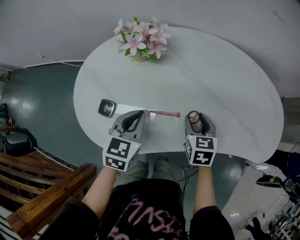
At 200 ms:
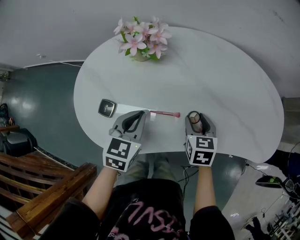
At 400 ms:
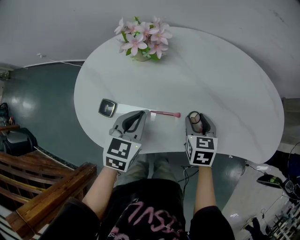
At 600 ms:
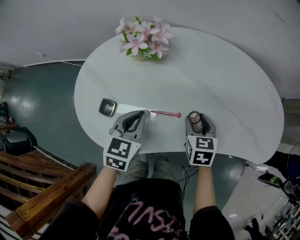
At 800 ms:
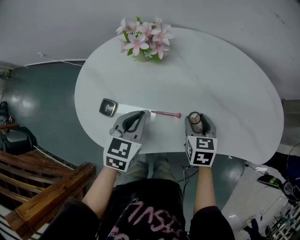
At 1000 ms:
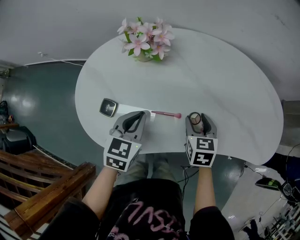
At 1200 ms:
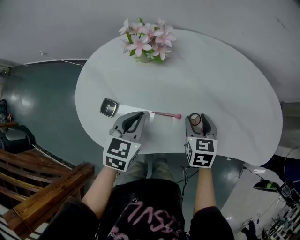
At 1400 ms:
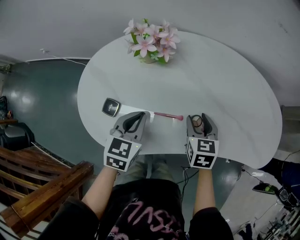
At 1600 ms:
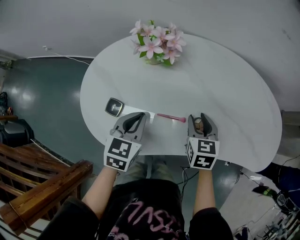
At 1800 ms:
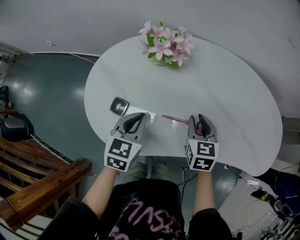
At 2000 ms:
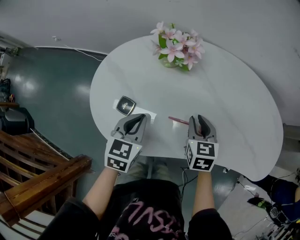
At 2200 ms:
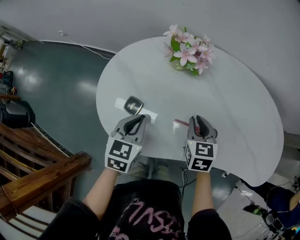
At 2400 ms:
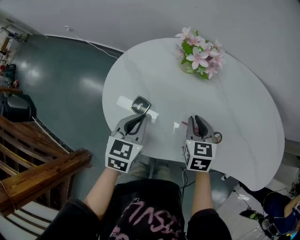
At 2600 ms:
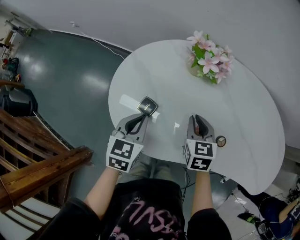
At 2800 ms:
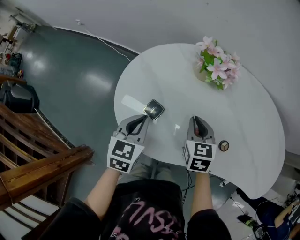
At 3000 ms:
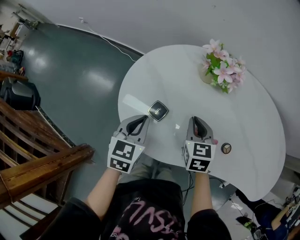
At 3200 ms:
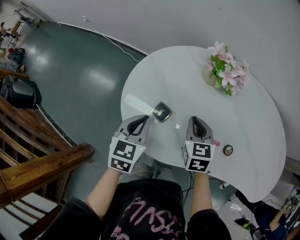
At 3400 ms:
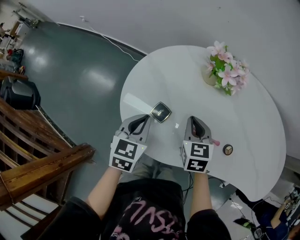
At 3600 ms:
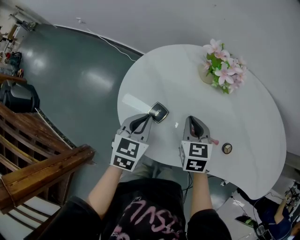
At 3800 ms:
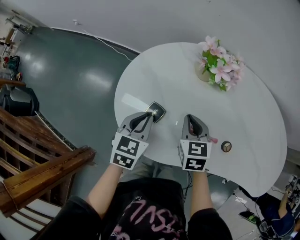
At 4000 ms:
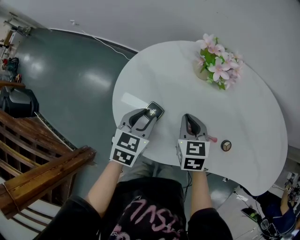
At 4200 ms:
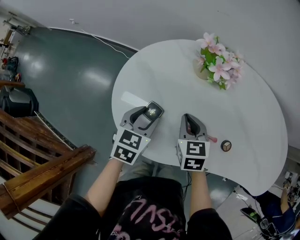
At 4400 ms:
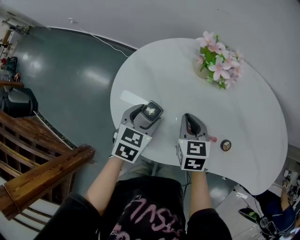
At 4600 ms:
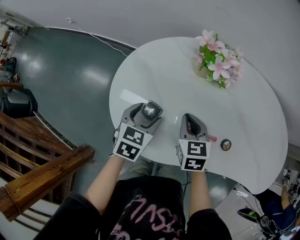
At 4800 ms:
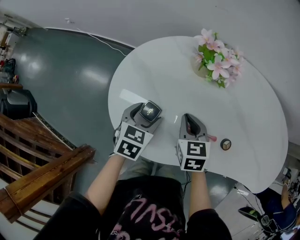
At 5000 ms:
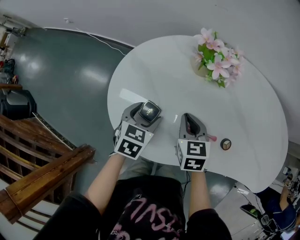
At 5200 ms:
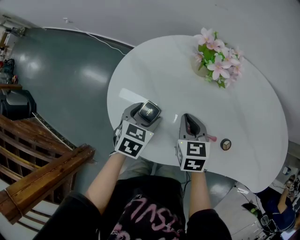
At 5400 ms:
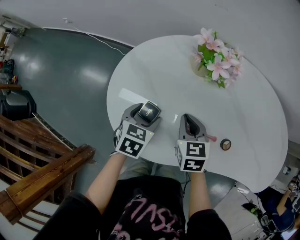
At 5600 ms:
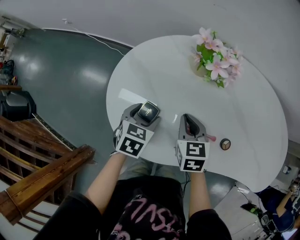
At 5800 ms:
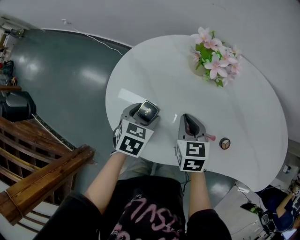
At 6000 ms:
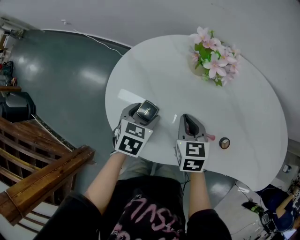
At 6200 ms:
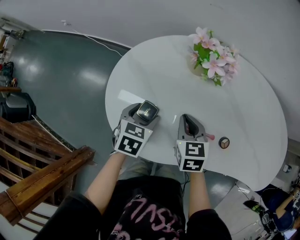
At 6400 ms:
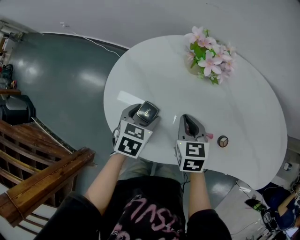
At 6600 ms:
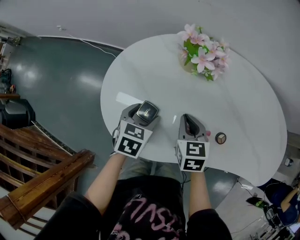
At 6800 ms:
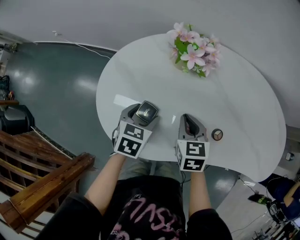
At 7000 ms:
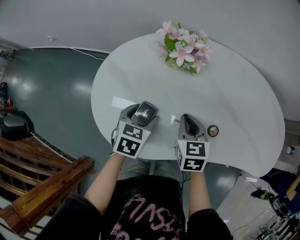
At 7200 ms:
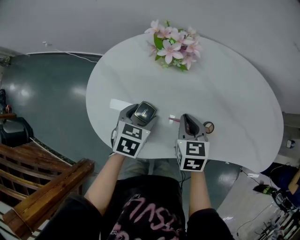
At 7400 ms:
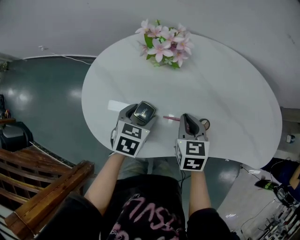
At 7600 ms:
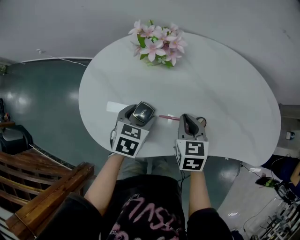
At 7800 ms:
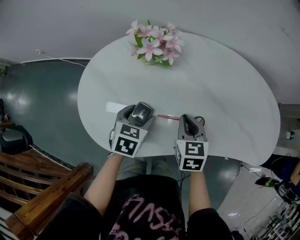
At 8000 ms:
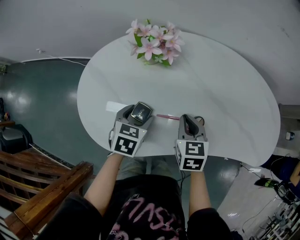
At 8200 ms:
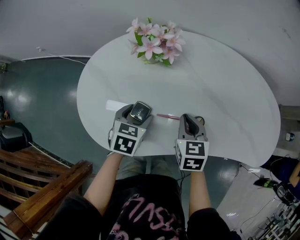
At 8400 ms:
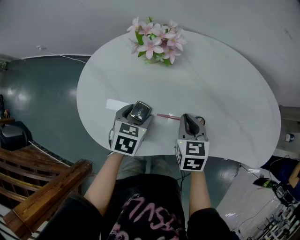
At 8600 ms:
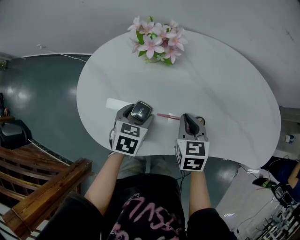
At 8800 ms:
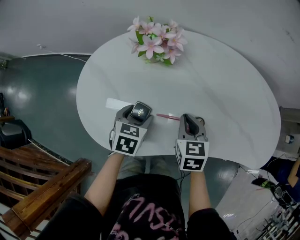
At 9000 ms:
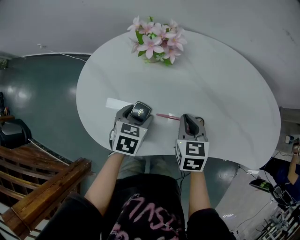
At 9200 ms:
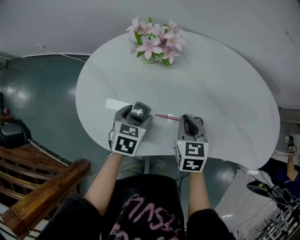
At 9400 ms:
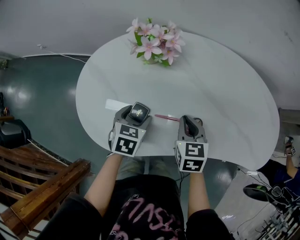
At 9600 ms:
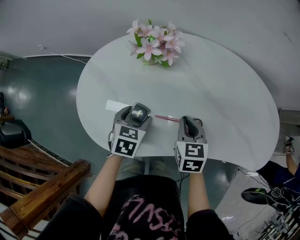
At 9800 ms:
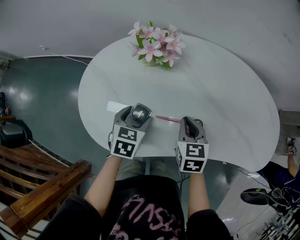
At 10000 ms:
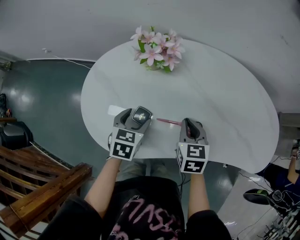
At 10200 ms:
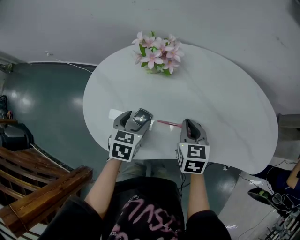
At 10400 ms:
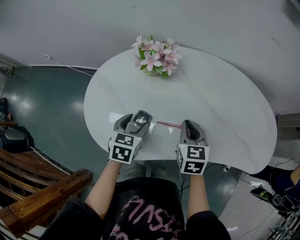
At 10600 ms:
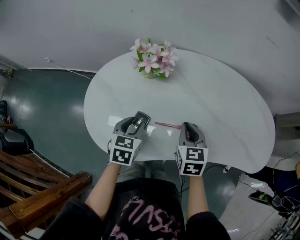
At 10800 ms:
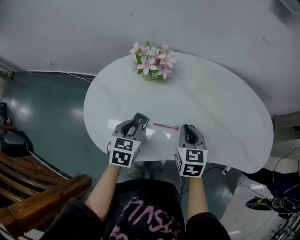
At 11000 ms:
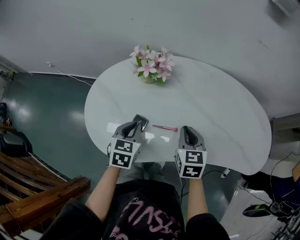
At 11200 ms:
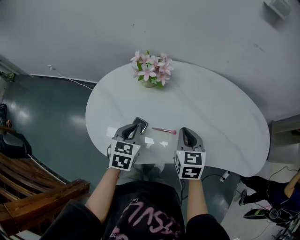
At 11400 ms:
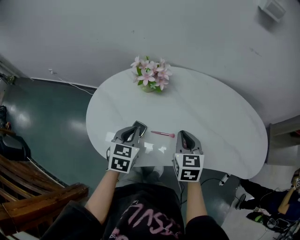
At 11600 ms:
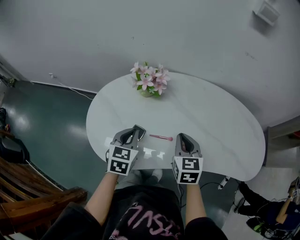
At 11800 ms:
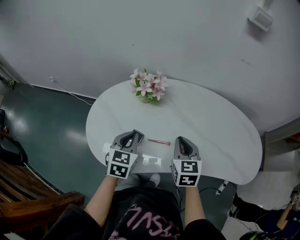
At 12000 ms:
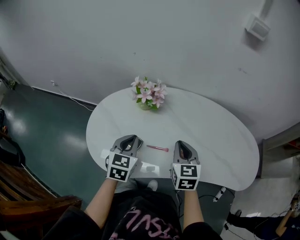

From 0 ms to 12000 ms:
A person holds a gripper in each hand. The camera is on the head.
From 0 ms to 1600 ms: The grippers make only small movements.
From 1600 ms to 3000 ms: The two grippers go roughly 20 cm to the left. The right gripper closes its fingers.
From 3000 ms to 4400 ms: The left gripper shifts by approximately 5 cm, and opens.
From 4400 ms to 6000 ms: The grippers make only small movements.
From 6000 ms to 7600 ms: Both grippers travel together to the right, roughly 15 cm.
From 7600 ms to 10400 ms: The grippers move only a little.
From 10400 ms to 12000 ms: Both grippers travel together upward, roughly 10 cm. The left gripper closes.

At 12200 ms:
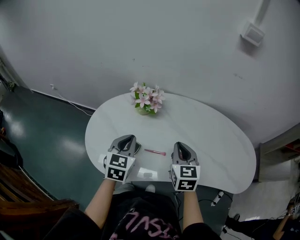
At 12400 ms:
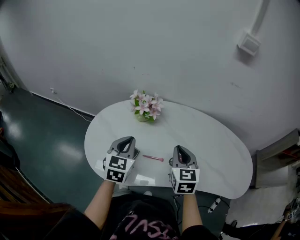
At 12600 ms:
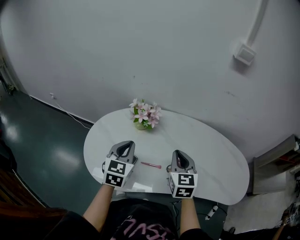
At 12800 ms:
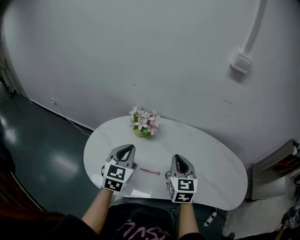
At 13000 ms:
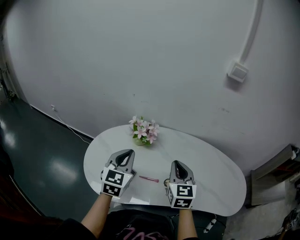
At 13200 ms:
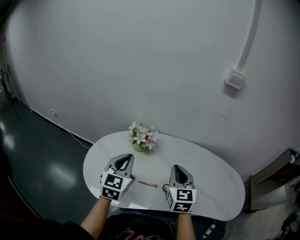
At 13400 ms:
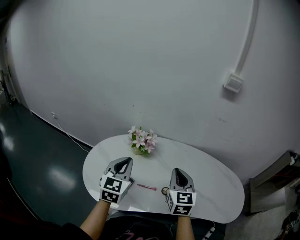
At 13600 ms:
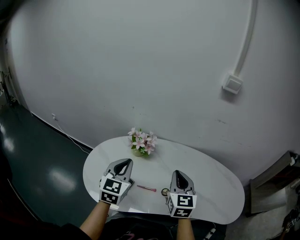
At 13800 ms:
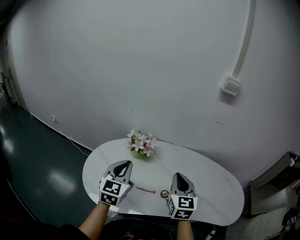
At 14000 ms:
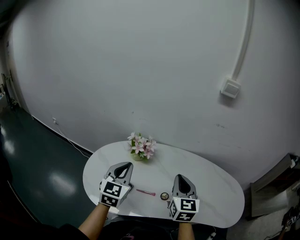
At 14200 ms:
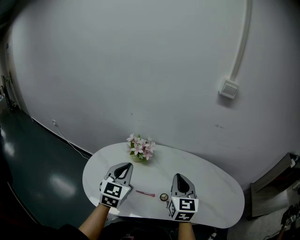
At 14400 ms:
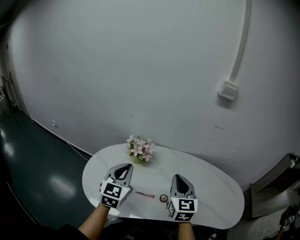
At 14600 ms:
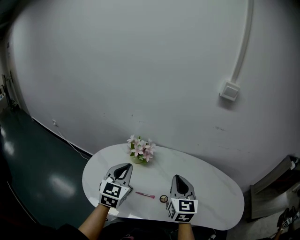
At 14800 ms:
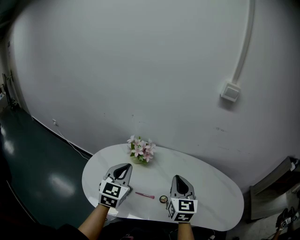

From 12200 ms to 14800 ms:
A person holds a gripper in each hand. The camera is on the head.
From 12200 ms to 13400 ms: Both grippers travel together upward, approximately 10 cm.
From 13400 ms to 14800 ms: The grippers make only small movements.

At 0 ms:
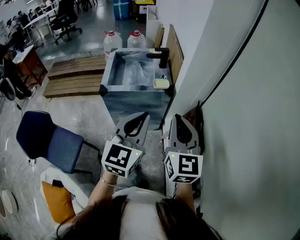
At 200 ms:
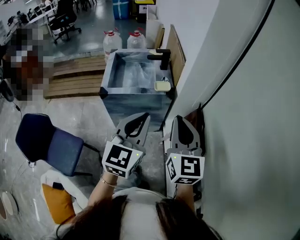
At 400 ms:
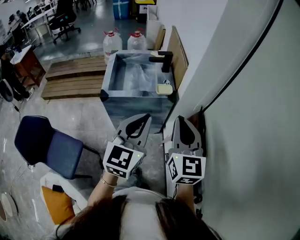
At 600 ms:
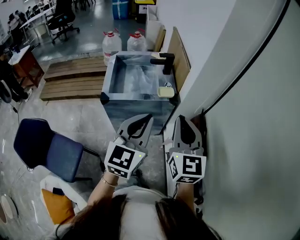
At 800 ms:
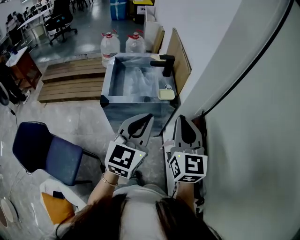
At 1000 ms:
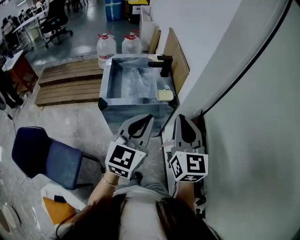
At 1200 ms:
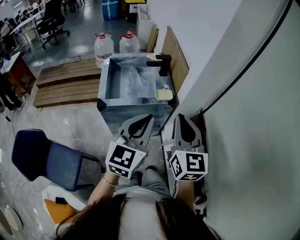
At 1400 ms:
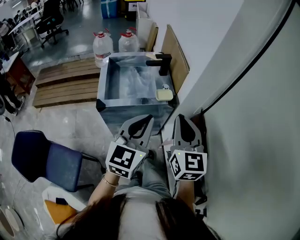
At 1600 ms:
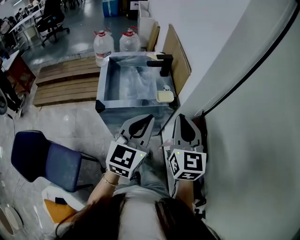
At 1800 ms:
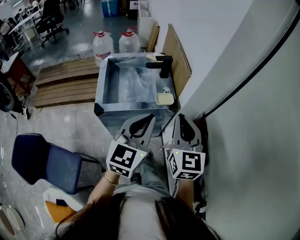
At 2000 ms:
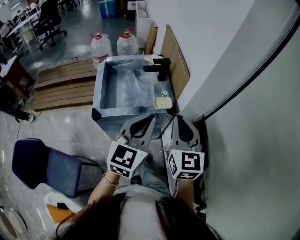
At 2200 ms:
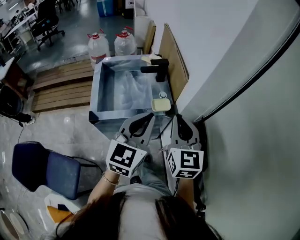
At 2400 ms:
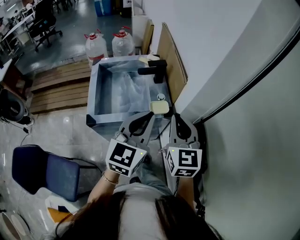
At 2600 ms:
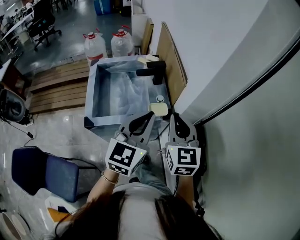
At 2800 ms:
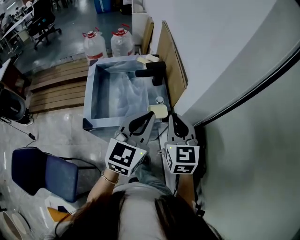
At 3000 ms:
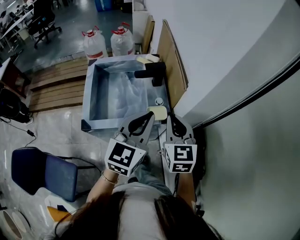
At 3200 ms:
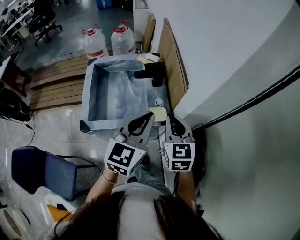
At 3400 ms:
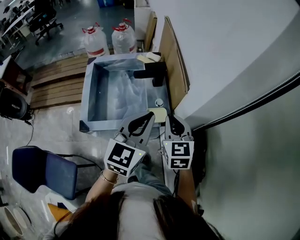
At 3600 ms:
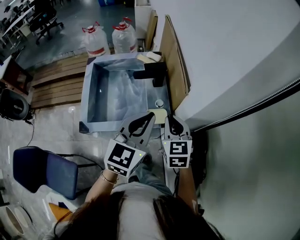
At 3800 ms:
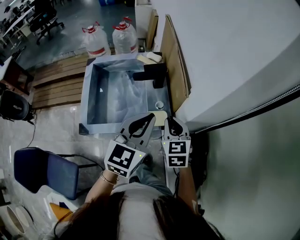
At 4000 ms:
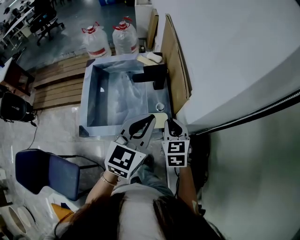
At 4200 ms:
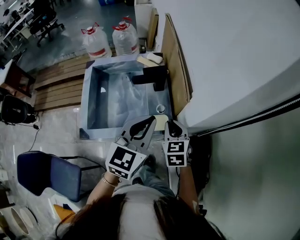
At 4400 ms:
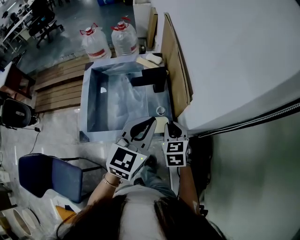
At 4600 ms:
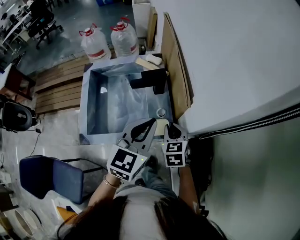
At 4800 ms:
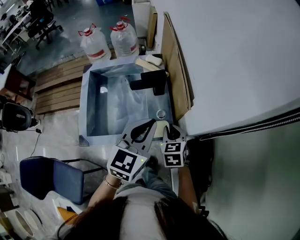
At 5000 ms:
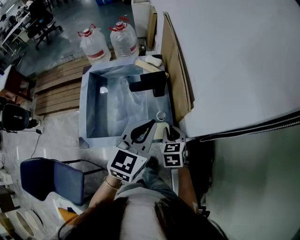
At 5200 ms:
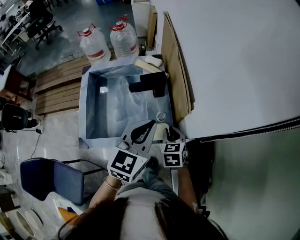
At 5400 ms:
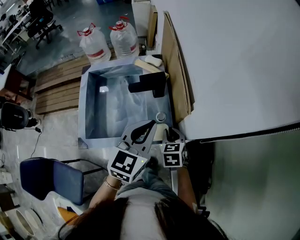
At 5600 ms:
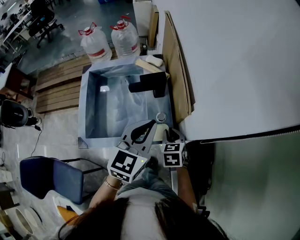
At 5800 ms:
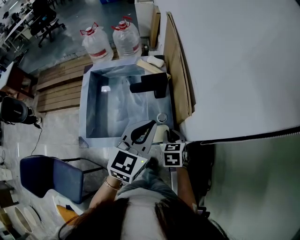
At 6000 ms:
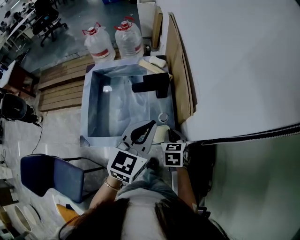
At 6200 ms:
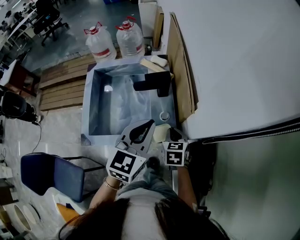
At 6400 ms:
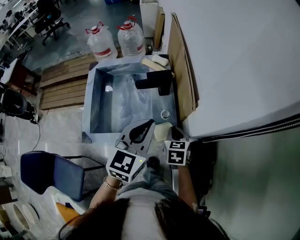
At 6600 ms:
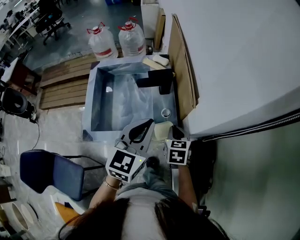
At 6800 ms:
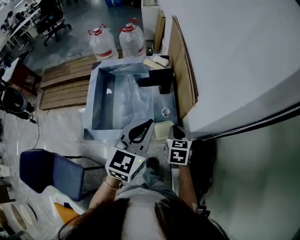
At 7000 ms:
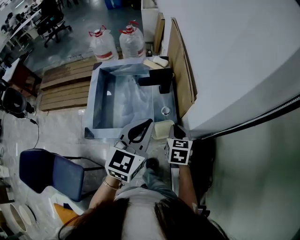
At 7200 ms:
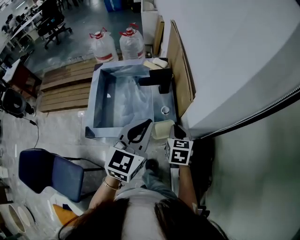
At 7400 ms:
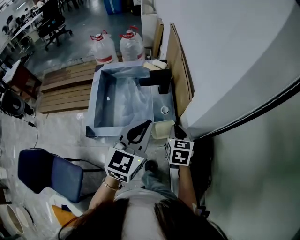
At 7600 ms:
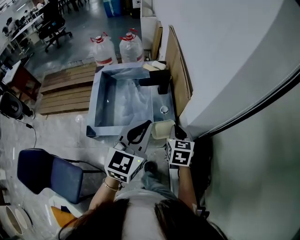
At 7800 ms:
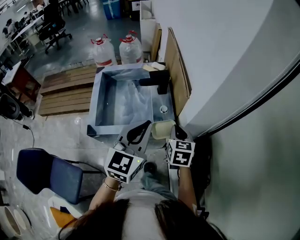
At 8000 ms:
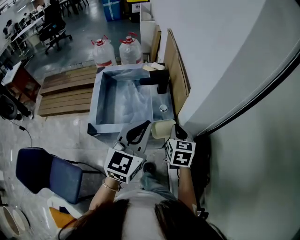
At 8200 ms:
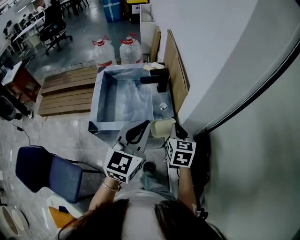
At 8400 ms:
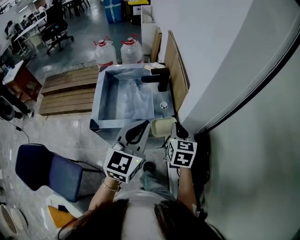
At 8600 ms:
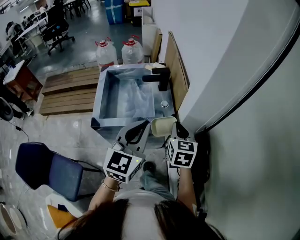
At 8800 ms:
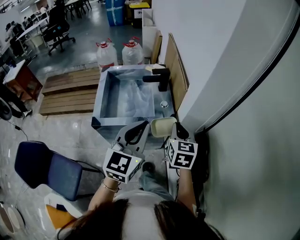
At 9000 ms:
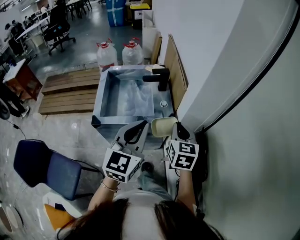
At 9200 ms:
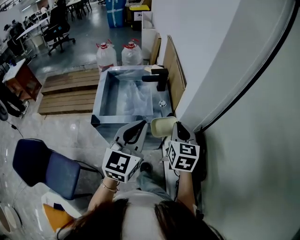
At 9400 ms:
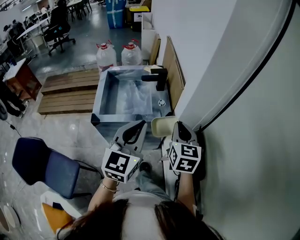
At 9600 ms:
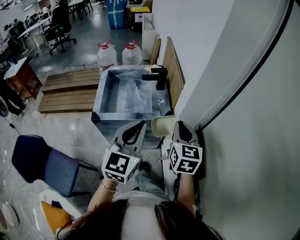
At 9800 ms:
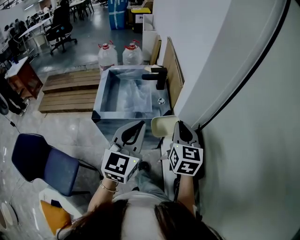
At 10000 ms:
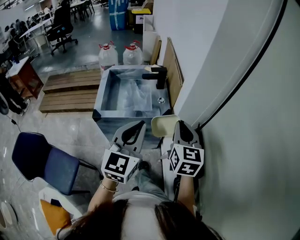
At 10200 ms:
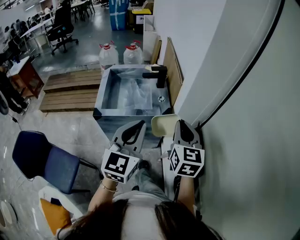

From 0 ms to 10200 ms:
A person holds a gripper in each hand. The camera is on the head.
From 0 ms to 1400 ms: The two grippers go roughly 15 cm forward and to the left.
From 1400 ms to 3000 ms: The right gripper moves forward and downward, about 20 cm. Meanwhile the left gripper heads forward, covering approximately 20 cm.
From 3000 ms to 4400 ms: The right gripper travels downward and forward by about 20 cm, and swivels about 20 degrees. The left gripper travels forward and downward by roughly 10 cm.
From 4400 ms to 5800 ms: The right gripper travels downward by about 5 cm.
From 5800 ms to 7200 ms: The right gripper goes roughly 5 cm upward, while the left gripper travels backward by approximately 10 cm.
From 7200 ms to 8800 ms: The right gripper goes about 15 cm upward and backward; the left gripper moves backward, about 15 cm.
From 8800 ms to 10200 ms: The right gripper heads backward and upward, covering about 15 cm; the left gripper heads backward, covering some 10 cm.
